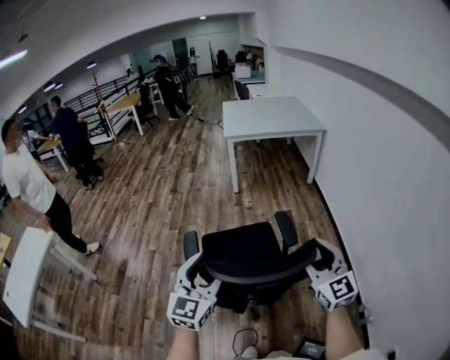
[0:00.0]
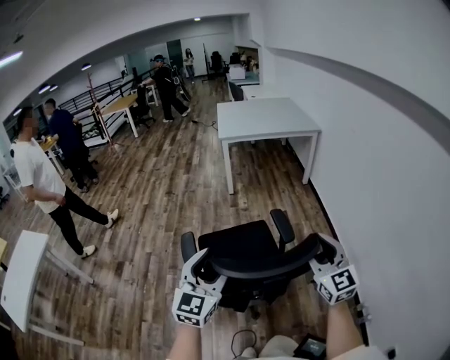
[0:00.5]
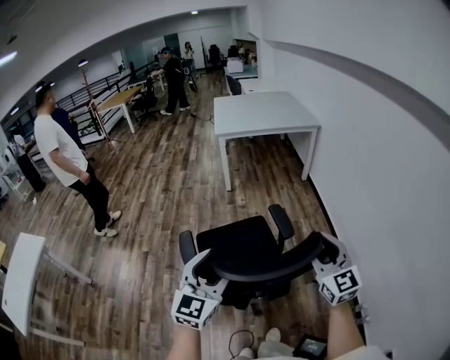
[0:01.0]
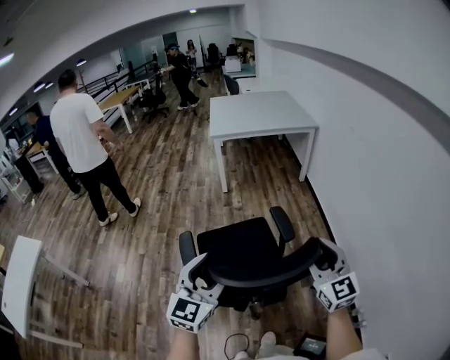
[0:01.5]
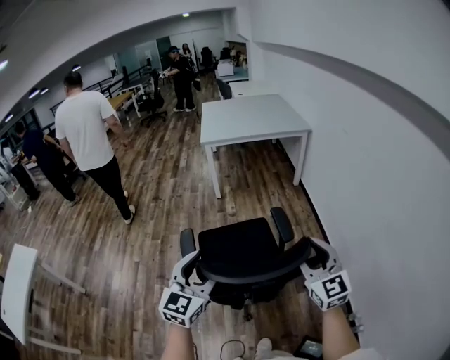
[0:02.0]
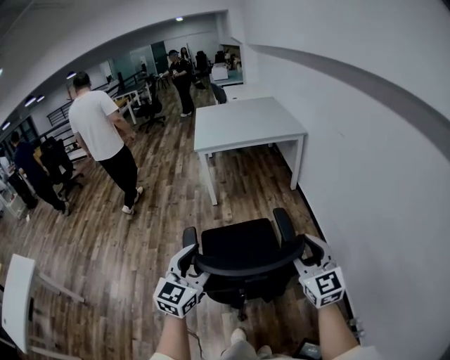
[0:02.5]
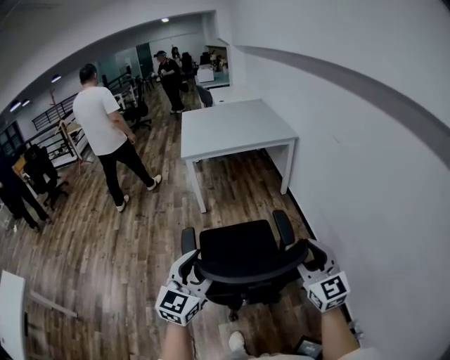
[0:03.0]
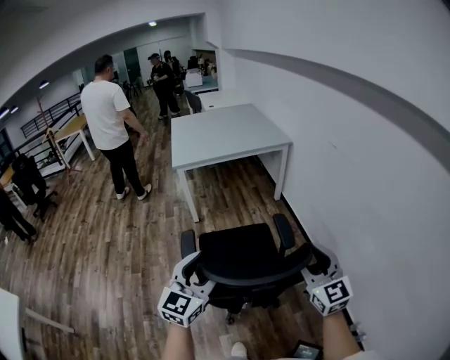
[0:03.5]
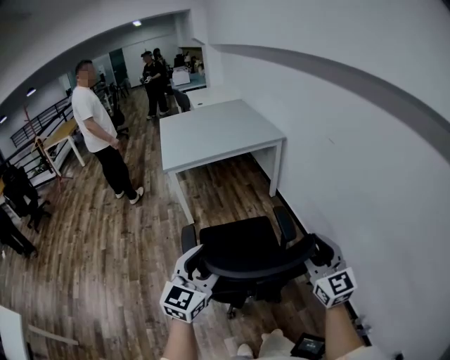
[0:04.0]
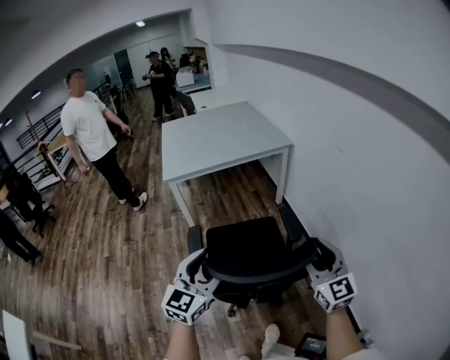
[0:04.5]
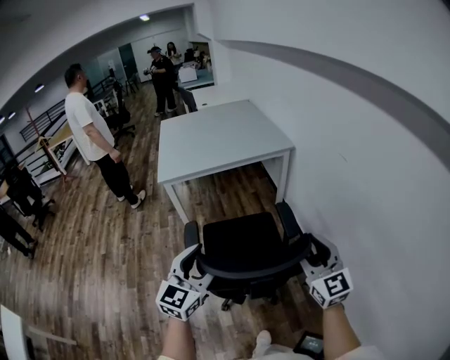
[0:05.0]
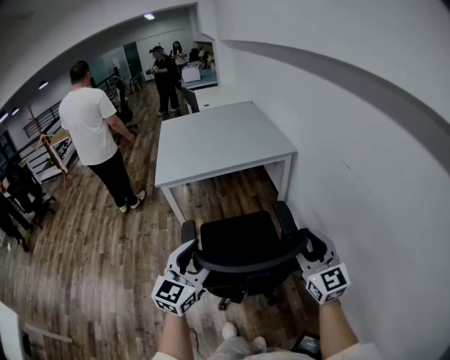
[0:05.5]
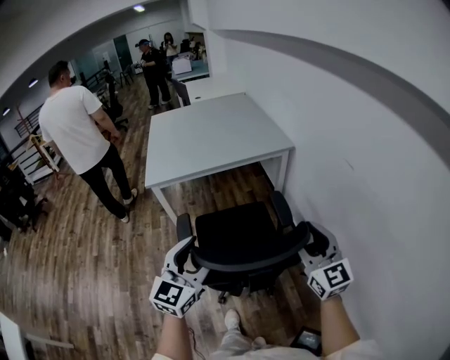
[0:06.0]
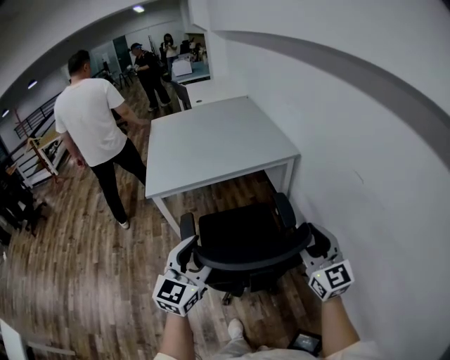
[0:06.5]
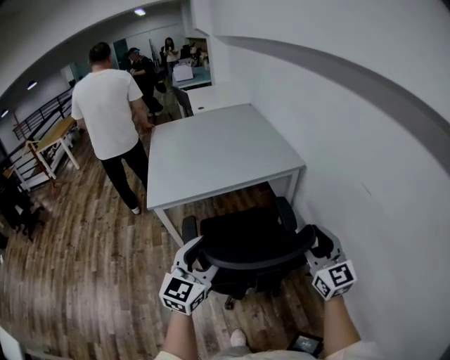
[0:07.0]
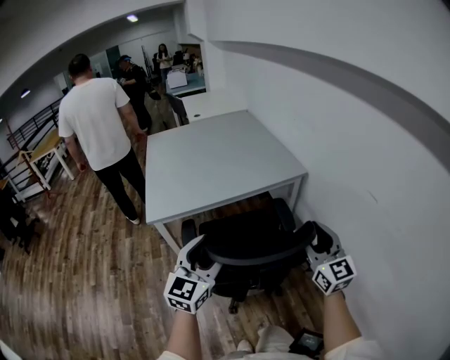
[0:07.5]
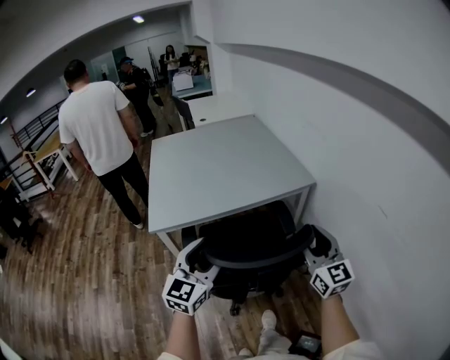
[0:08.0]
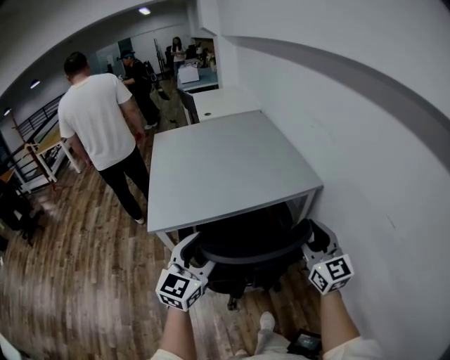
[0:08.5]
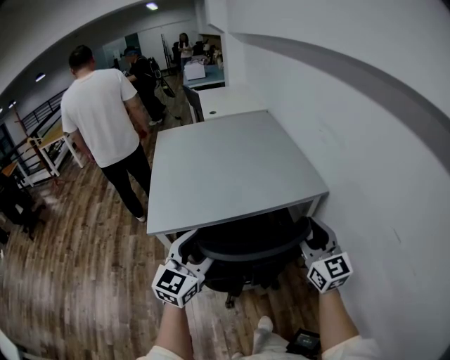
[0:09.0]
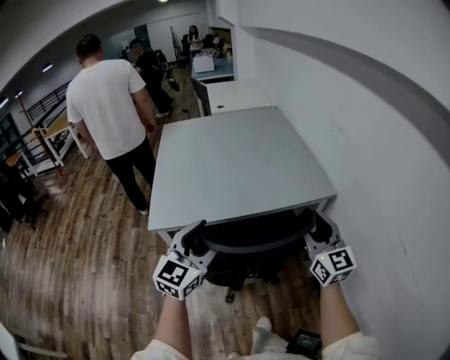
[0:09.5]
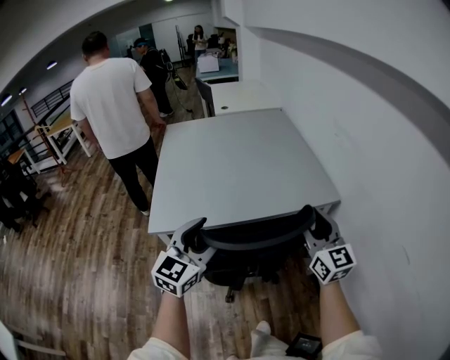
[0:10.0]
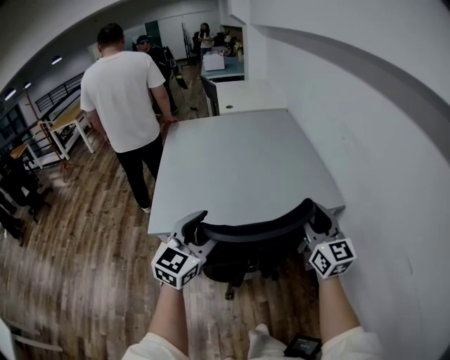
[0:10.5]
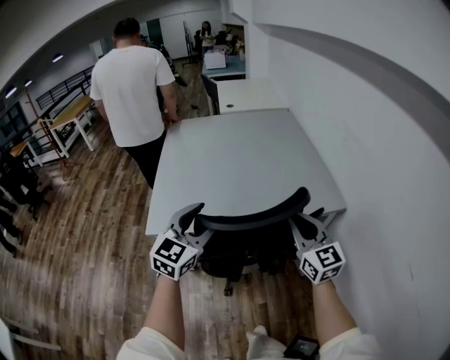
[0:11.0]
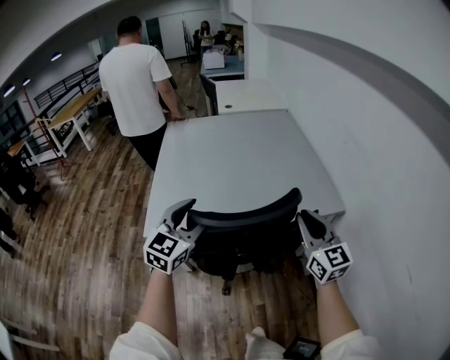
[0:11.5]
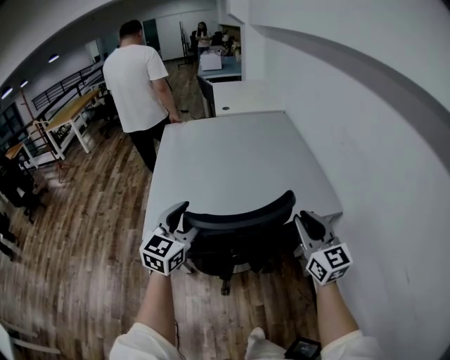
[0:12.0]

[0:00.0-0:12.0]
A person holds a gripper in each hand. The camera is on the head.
0:00.0 to 0:02.0: The two grippers go approximately 15 cm forward and to the right.
0:02.0 to 0:04.0: The grippers both shift forward by roughly 25 cm.
0:04.0 to 0:06.0: The grippers both shift forward by some 30 cm.
0:06.0 to 0:08.0: The grippers both shift forward by approximately 25 cm.
0:08.0 to 0:10.0: The two grippers go about 15 cm forward.
0:10.0 to 0:12.0: The right gripper moves forward, approximately 5 cm, and closes its fingers, while the left gripper goes approximately 10 cm forward and to the left.

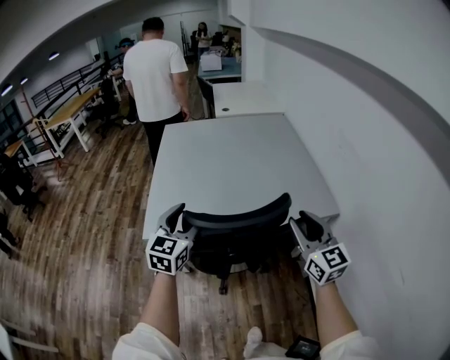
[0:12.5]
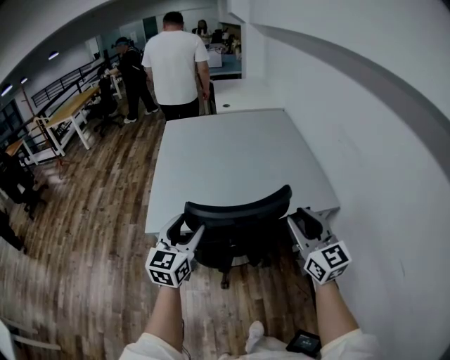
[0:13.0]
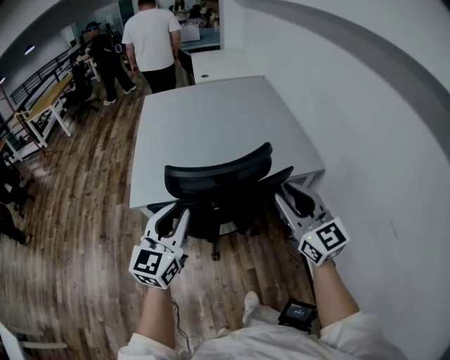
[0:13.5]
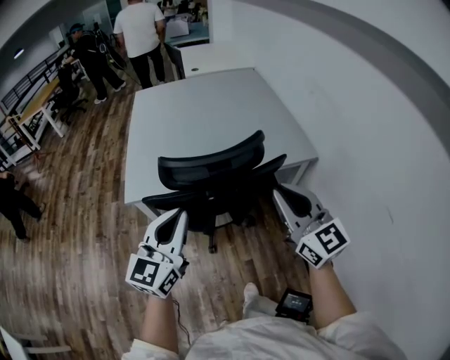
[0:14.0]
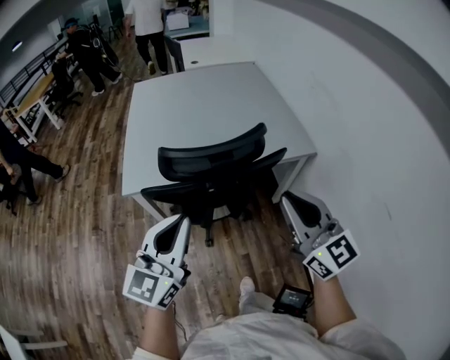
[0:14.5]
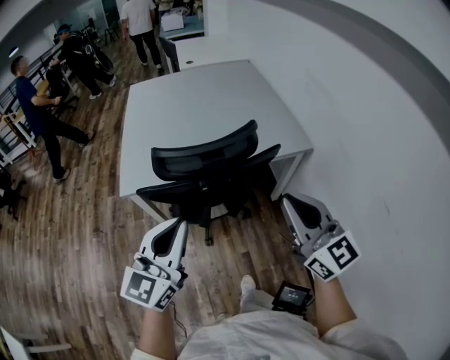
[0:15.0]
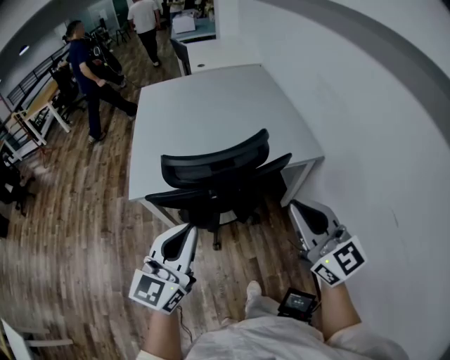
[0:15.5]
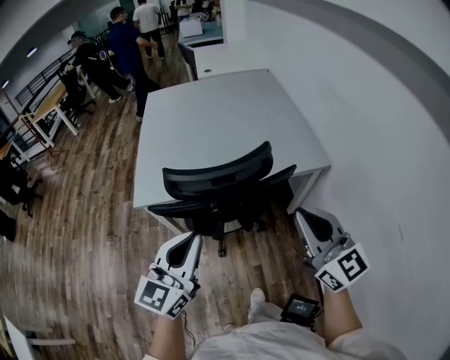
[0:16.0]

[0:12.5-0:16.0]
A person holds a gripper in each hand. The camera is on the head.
0:12.5 to 0:14.5: The two grippers go approximately 20 cm backward. The right gripper closes. Meanwhile the left gripper closes.
0:14.5 to 0:16.0: The grippers make only small movements.

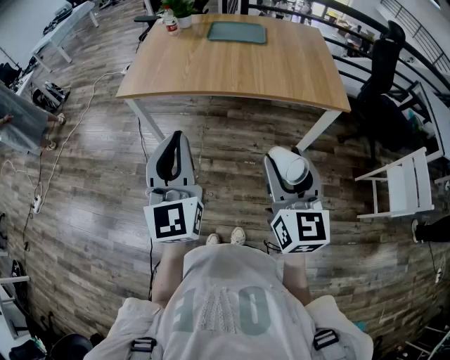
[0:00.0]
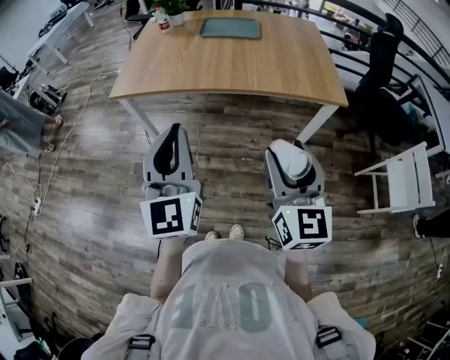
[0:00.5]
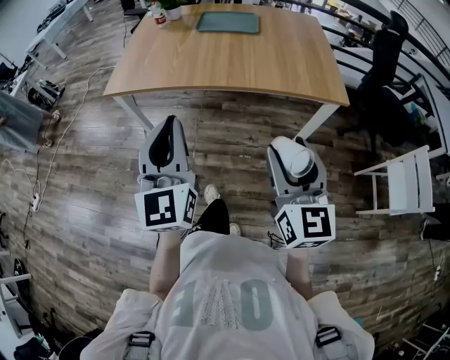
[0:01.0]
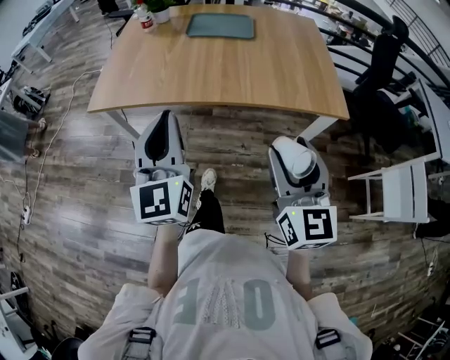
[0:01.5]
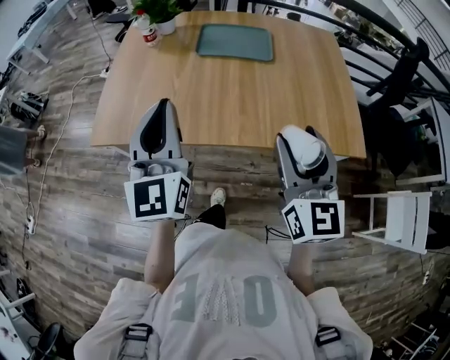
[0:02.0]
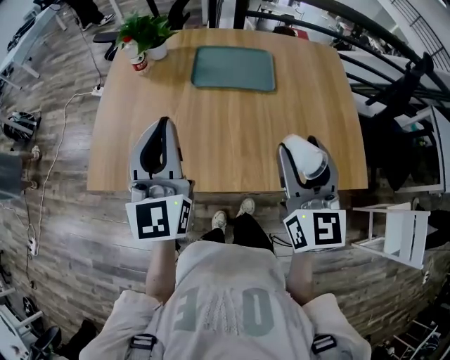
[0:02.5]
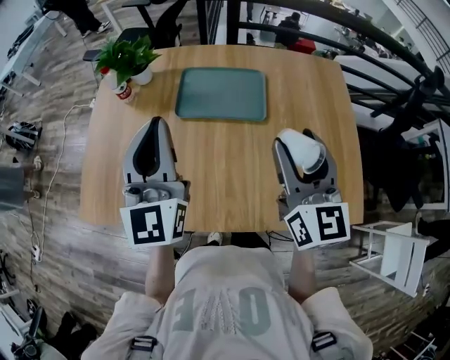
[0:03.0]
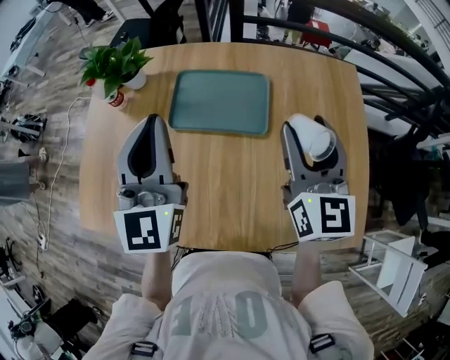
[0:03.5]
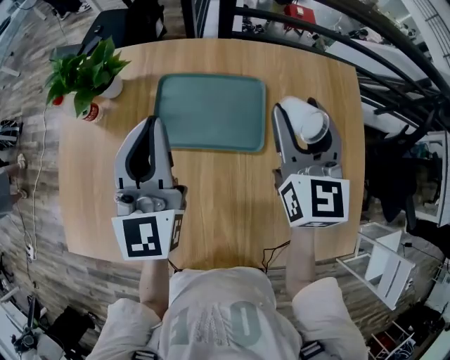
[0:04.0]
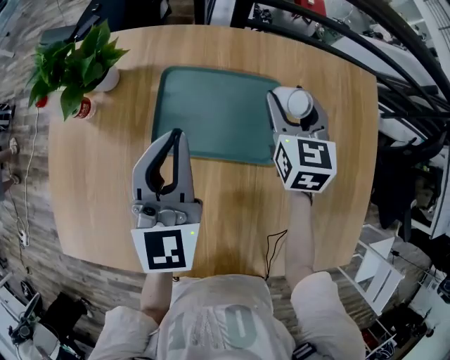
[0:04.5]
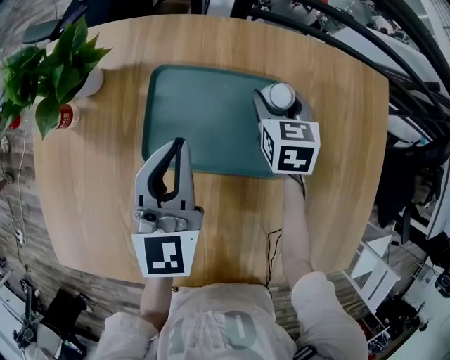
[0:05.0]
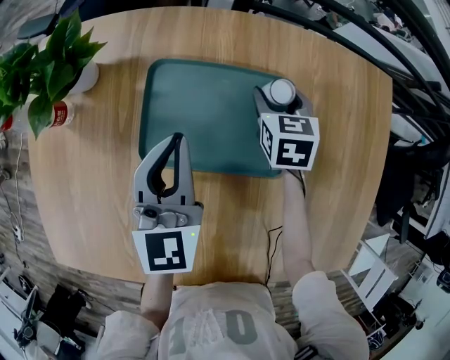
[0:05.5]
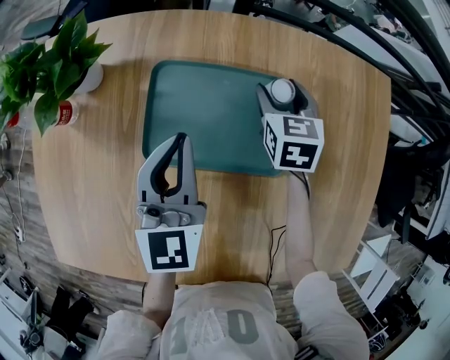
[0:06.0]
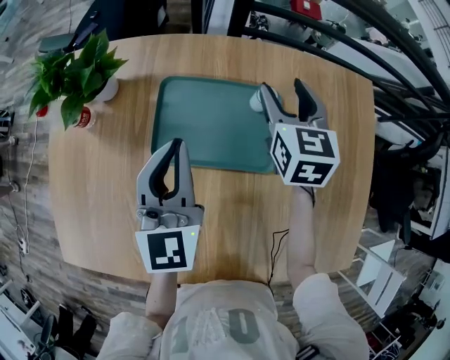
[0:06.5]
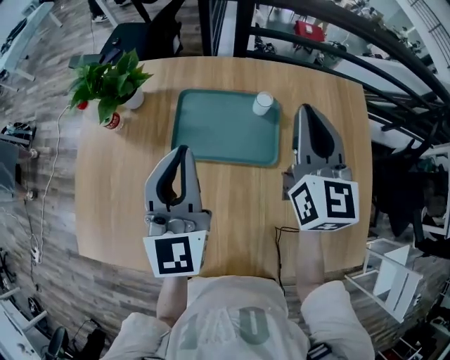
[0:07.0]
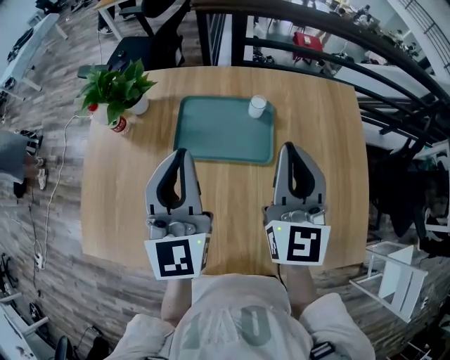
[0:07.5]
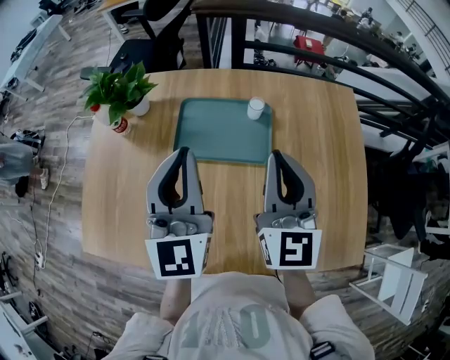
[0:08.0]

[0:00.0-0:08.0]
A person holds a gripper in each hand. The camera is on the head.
0:00.0 to 0:02.0: Both grippers move forward, roughly 35 cm.
0:02.0 to 0:04.0: Both grippers are carried forward, some 50 cm.
0:04.0 to 0:06.0: The right gripper heads downward and forward, covering approximately 25 cm, and angles its fingers downward, by about 30 degrees, while the left gripper goes about 15 cm downward.
0:06.0 to 0:08.0: The left gripper moves upward and backward, some 25 cm, and swivels about 20 degrees; the right gripper goes some 35 cm upward and backward, tilts its fingers some 40 degrees upward, and closes.

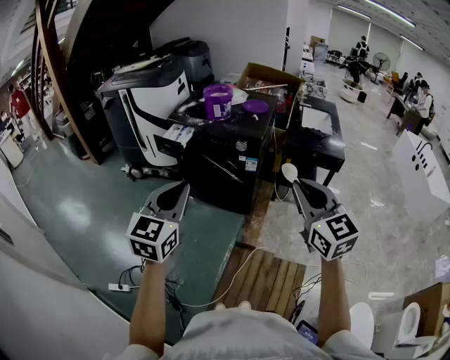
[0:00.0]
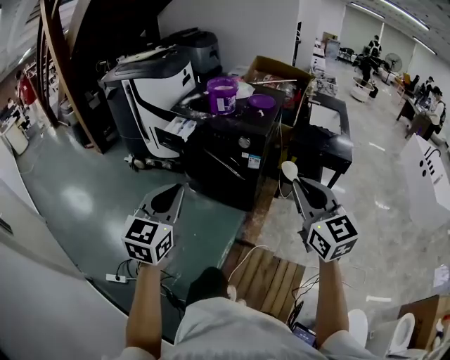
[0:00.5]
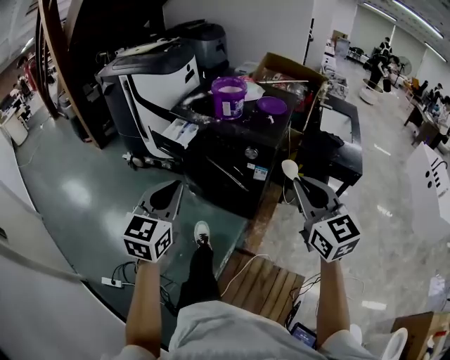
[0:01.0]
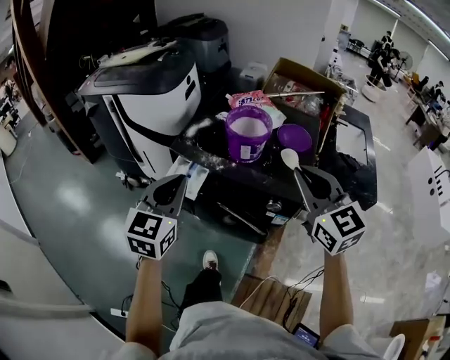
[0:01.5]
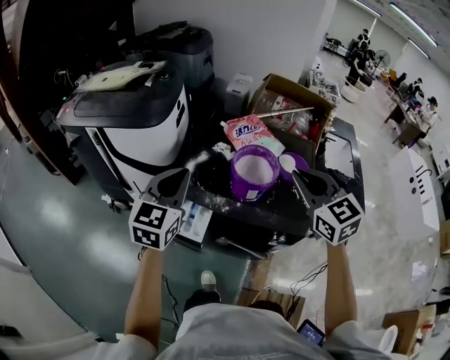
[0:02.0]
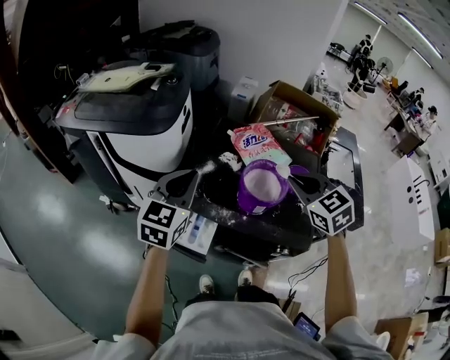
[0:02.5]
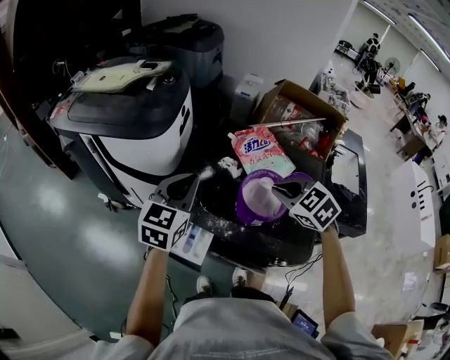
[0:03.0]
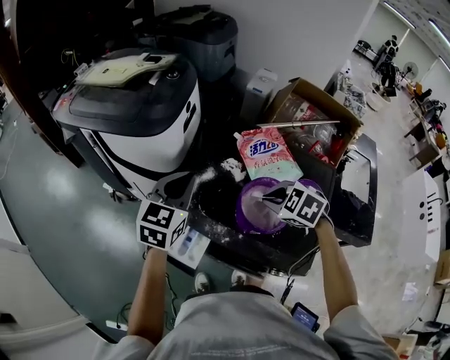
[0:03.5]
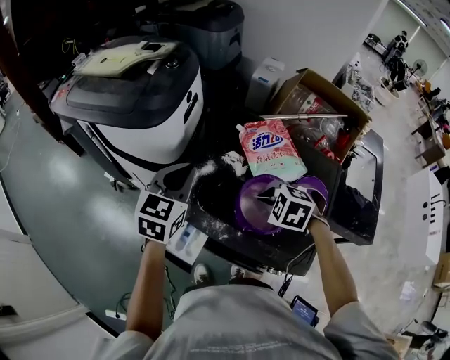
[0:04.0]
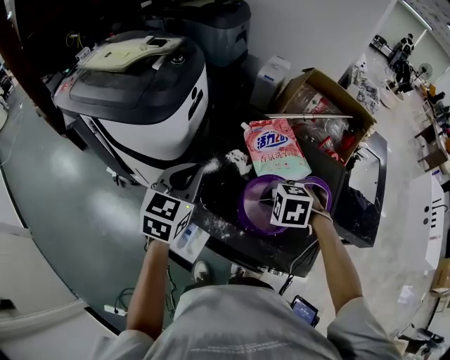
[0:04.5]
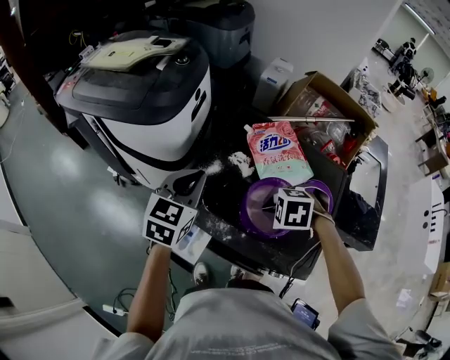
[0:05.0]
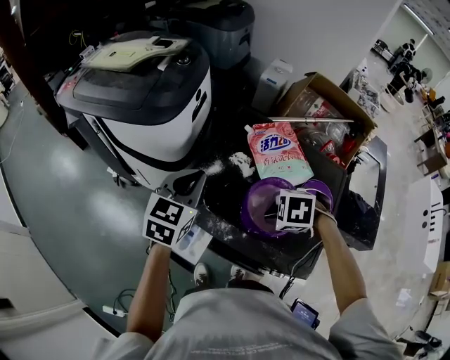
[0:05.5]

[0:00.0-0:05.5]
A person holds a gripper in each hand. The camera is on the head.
0:00.0 to 0:02.0: The two grippers travel together, forward, about 60 cm.
0:02.0 to 0:03.5: The left gripper is displaced forward by approximately 15 cm. Meanwhile the right gripper travels downward and forward by some 25 cm, and angles its fingers downward, by roughly 40 degrees.
0:03.5 to 0:05.5: The right gripper shifts by roughly 5 cm, and rotates about 30 degrees.
